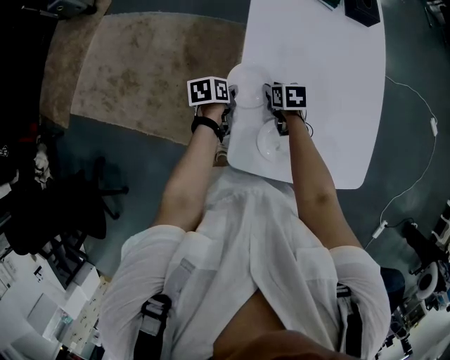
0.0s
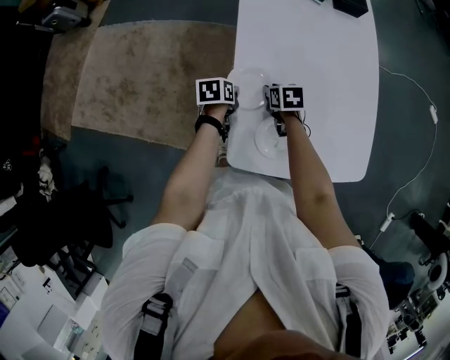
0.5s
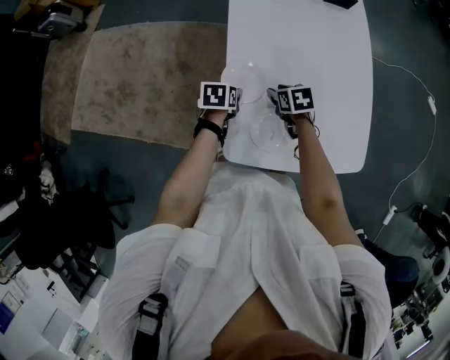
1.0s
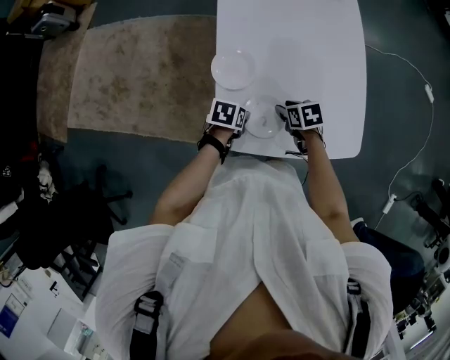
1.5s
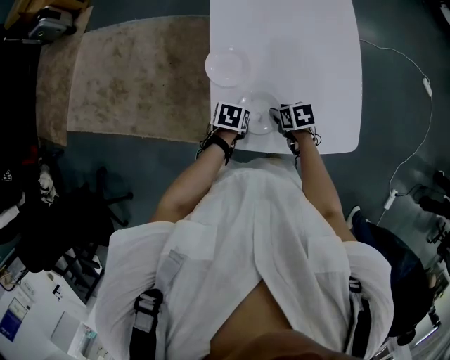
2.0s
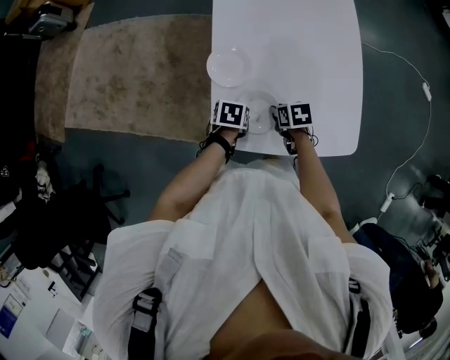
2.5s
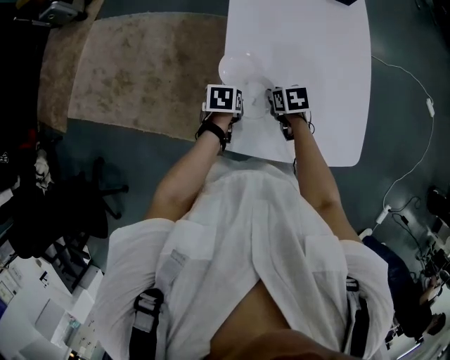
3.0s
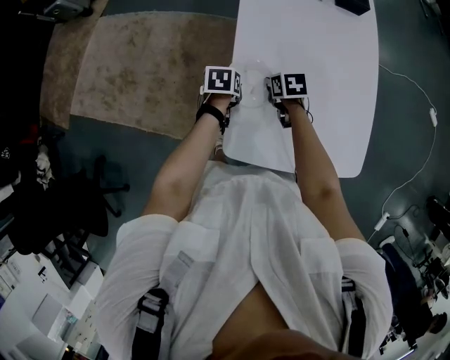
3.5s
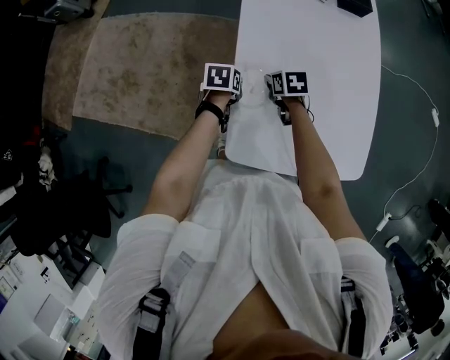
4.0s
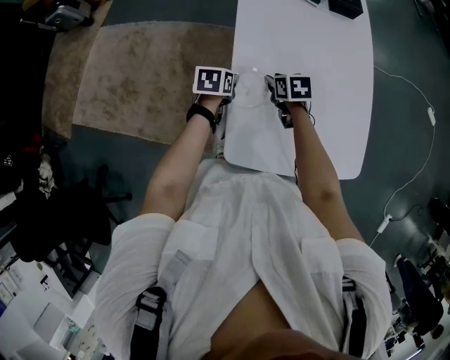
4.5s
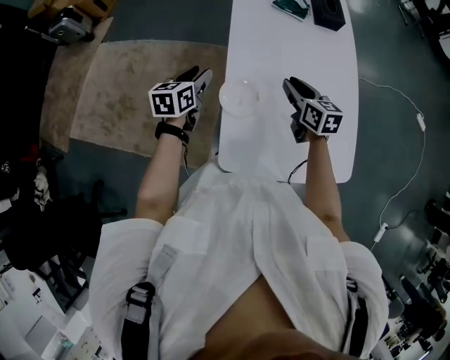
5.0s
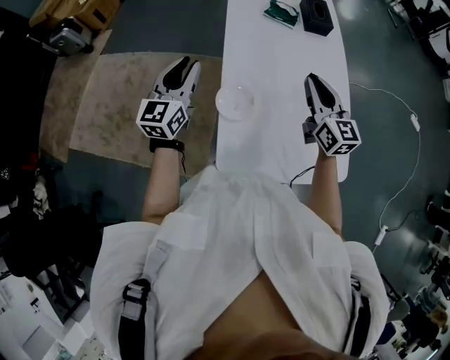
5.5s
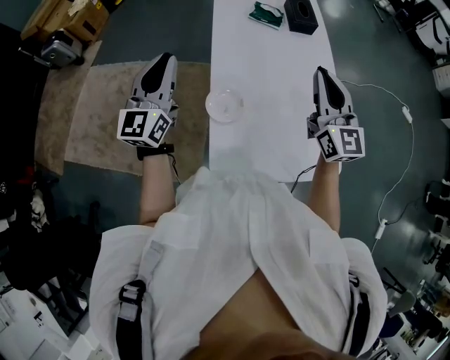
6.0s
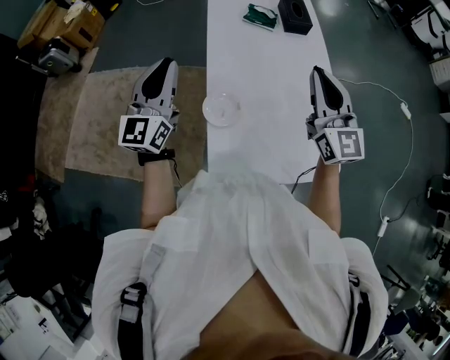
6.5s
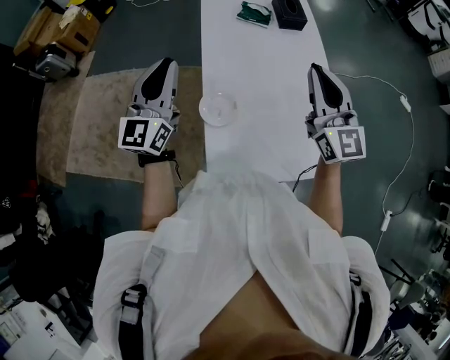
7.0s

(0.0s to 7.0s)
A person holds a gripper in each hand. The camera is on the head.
0.0s - 2.0s: The left gripper ends up some 20 cm from where it was, changes its angle by roughly 30 degrees, and opens, then closes once more. Meanwhile the right gripper shifts by approximately 20 cm.
2.0s - 3.5s: The right gripper ends up some 20 cm from where it was. The left gripper moves about 20 cm.
3.5s - 5.0s: The left gripper travels upward by approximately 15 cm, tips its fingers upward by some 30 degrees, and opens its fingers; the right gripper heads upward and to the right, covering roughly 20 cm, and points its fingers roughly 30 degrees further upward.
5.0s - 7.0s: The two grippers go about 25 cm upward. The left gripper tips its fingers upward by about 40 degrees, and closes up, while the right gripper points its fingers about 30 degrees further upward, and closes.

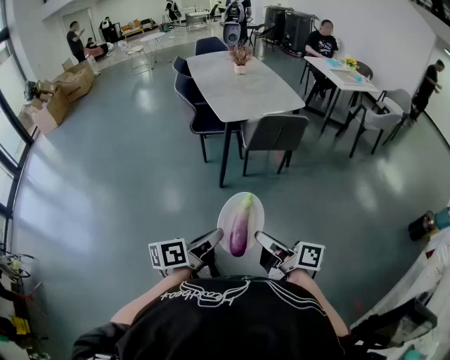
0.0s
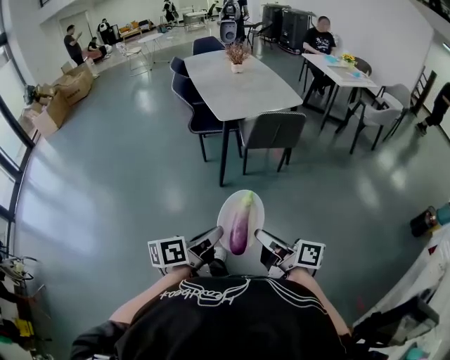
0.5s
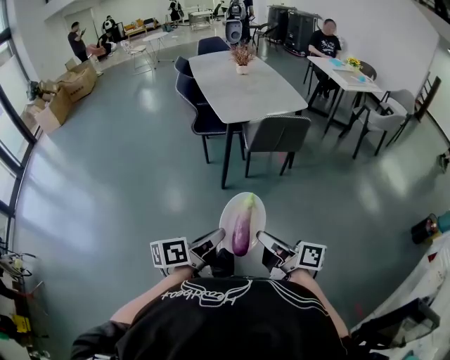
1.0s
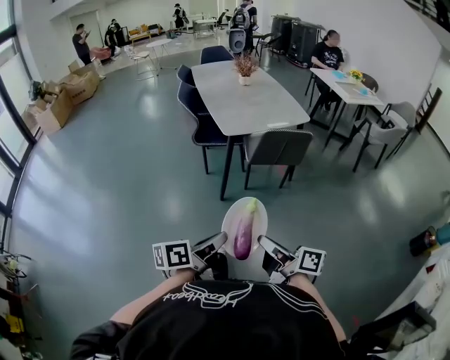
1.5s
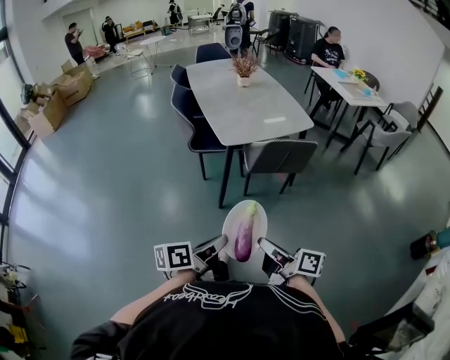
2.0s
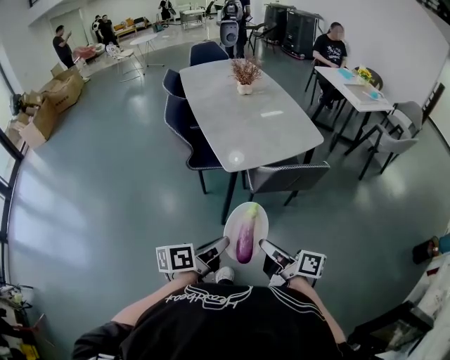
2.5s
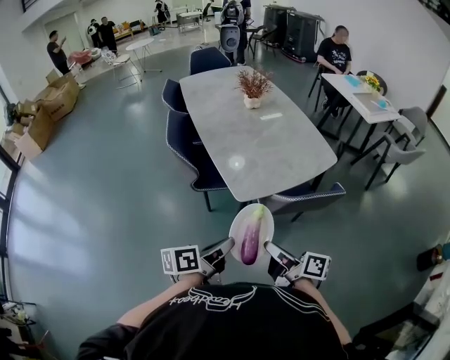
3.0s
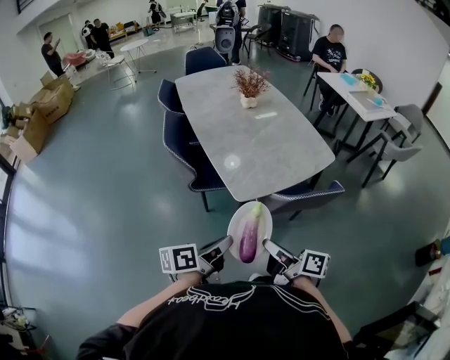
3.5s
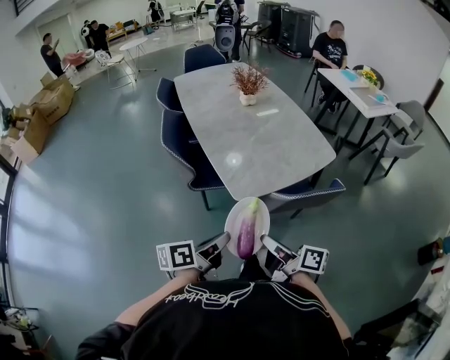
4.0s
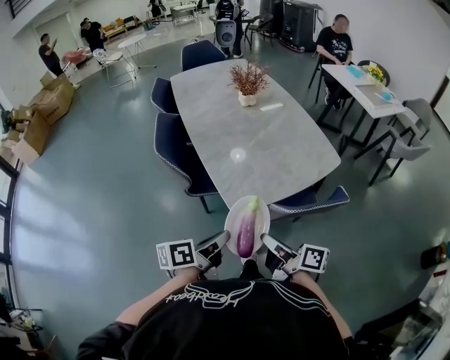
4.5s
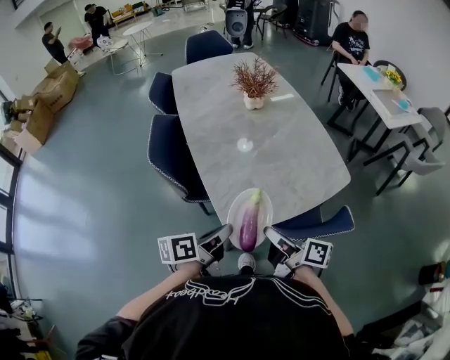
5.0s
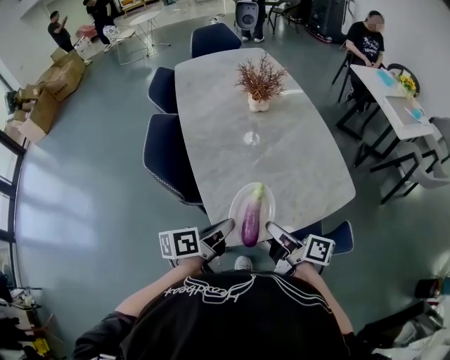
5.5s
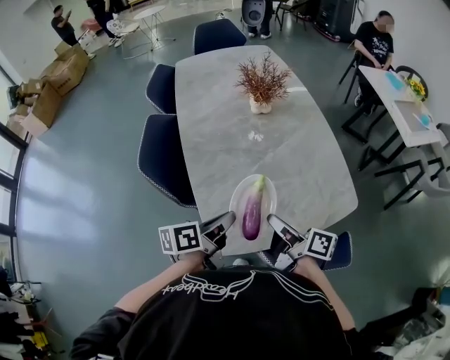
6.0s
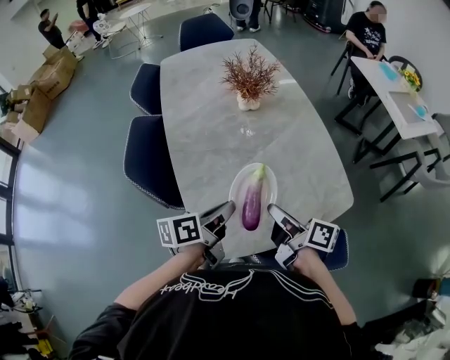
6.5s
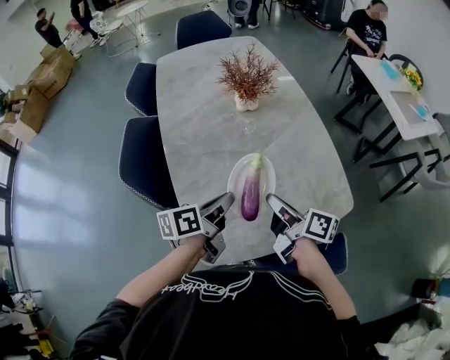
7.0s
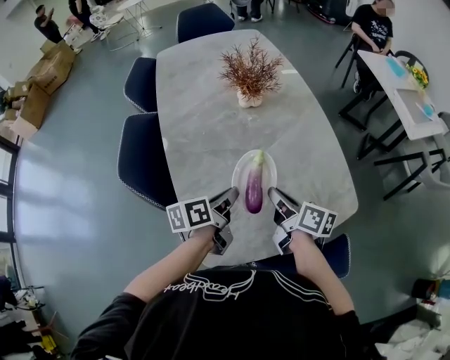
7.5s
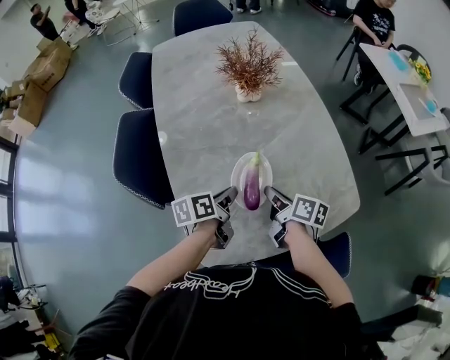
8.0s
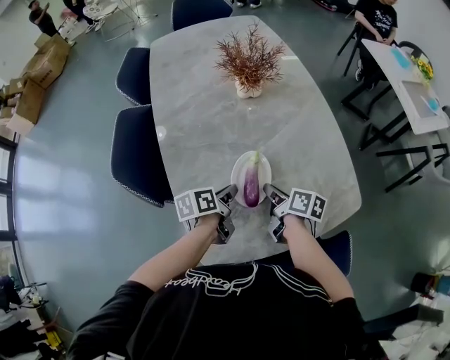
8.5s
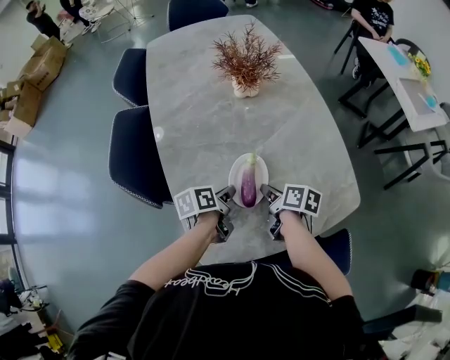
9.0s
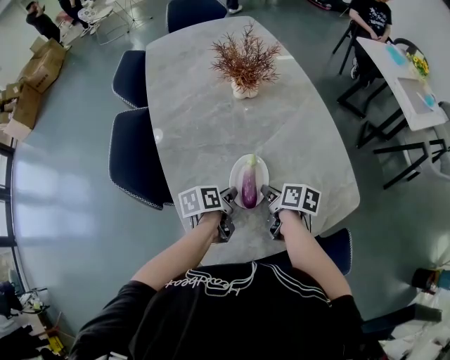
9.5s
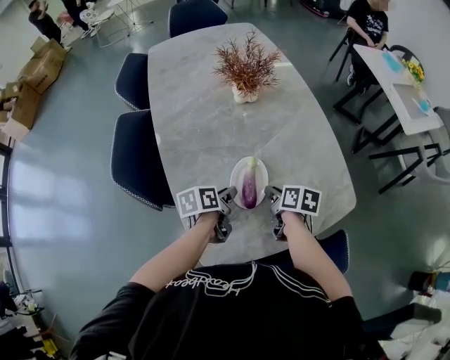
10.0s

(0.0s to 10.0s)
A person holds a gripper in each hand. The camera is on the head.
0.0s - 2.0s: Both grippers travel together forward, about 15 cm.
2.0s - 4.0s: The grippers both shift forward by some 35 cm.
4.0s - 6.0s: Both grippers travel together forward, approximately 35 cm.
6.0s - 8.0s: The grippers both shift forward and downward by about 20 cm. The right gripper swivels approximately 20 degrees.
8.0s - 10.0s: The right gripper changes its angle by roughly 20 degrees.

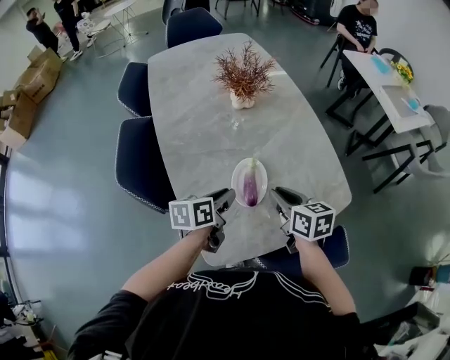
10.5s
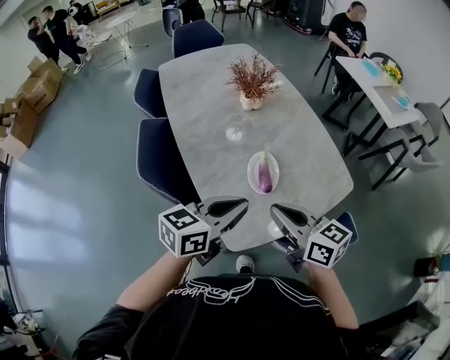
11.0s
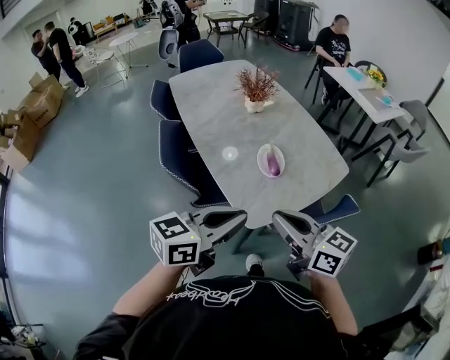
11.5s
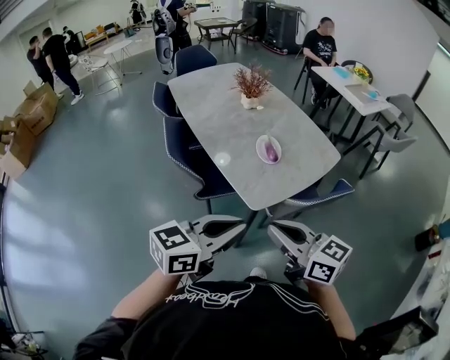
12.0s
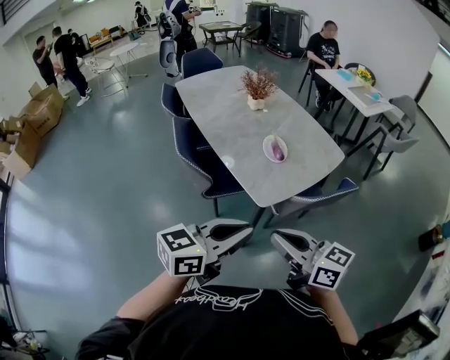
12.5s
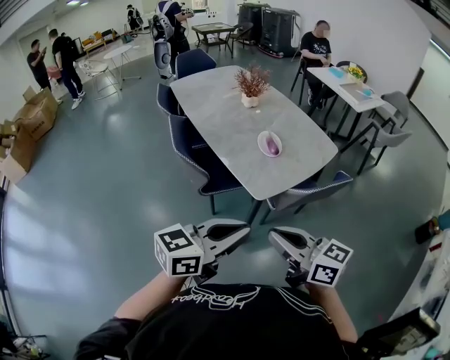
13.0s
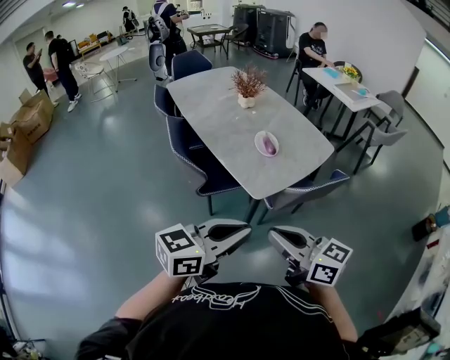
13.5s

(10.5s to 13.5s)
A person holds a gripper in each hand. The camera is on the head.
10.5s - 12.0s: The pair of grippers is taken backward, approximately 40 cm. Both grippers travel together upward, some 20 cm. The left gripper turns by some 50 degrees. The right gripper swivels some 30 degrees.
12.0s - 13.5s: Both grippers travel together backward, some 10 cm.

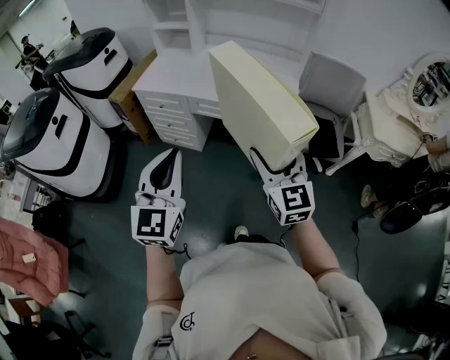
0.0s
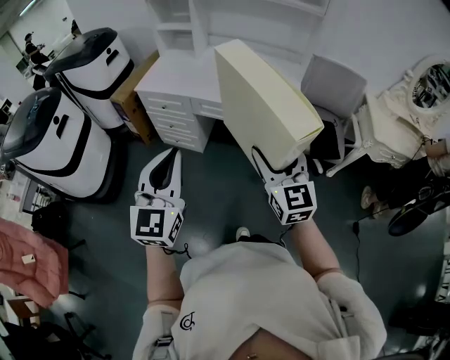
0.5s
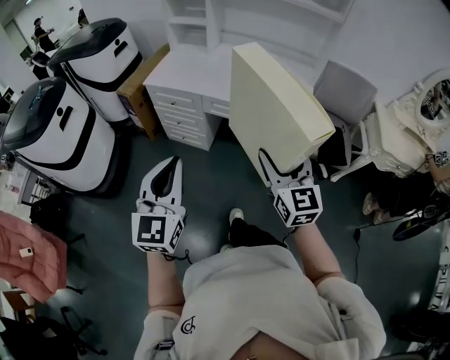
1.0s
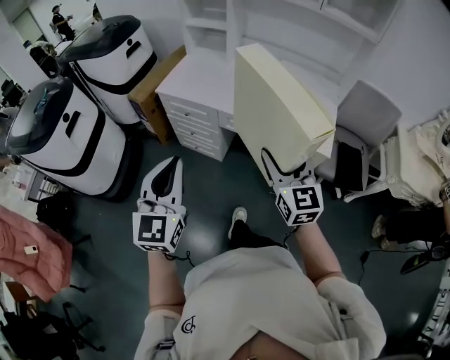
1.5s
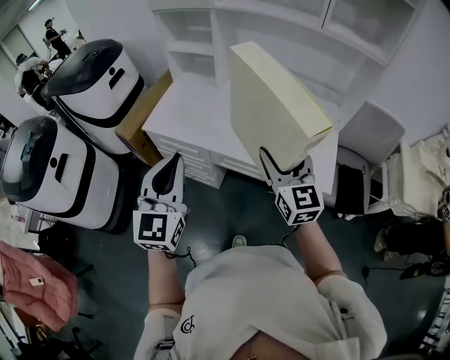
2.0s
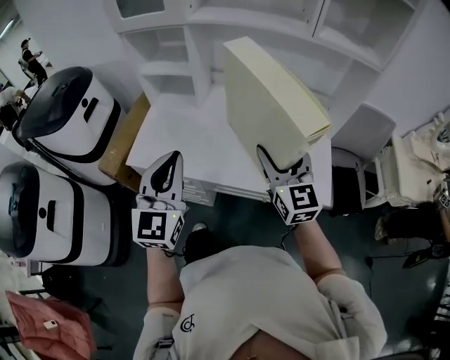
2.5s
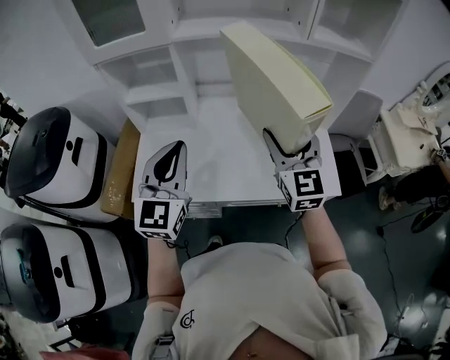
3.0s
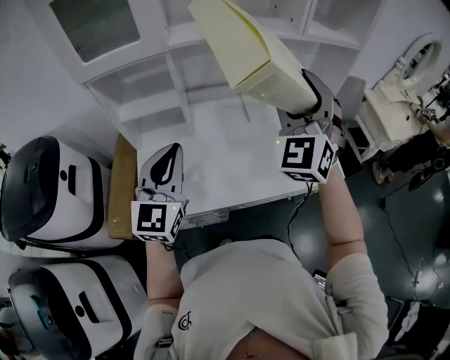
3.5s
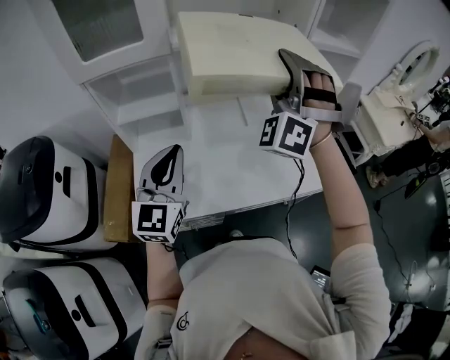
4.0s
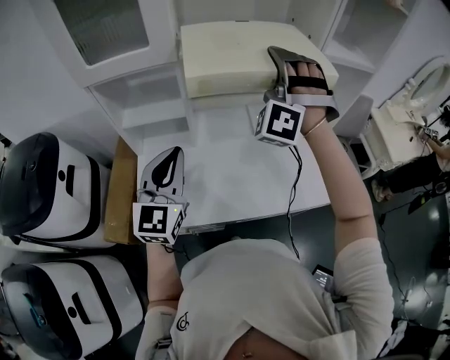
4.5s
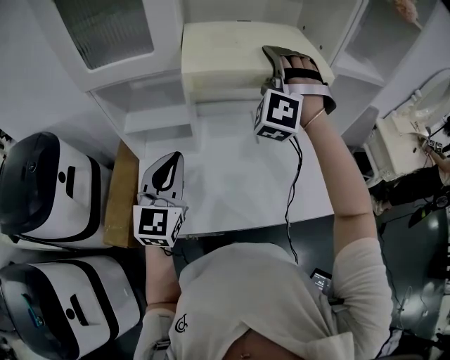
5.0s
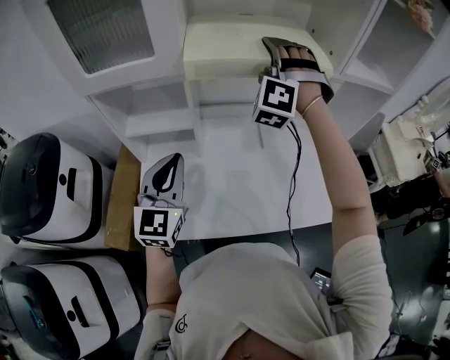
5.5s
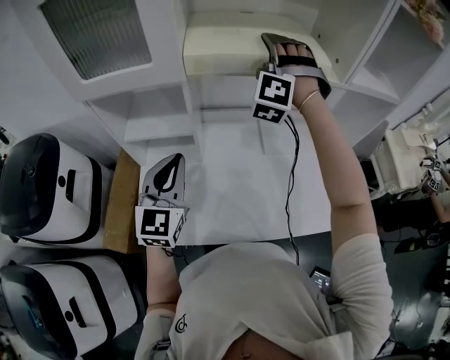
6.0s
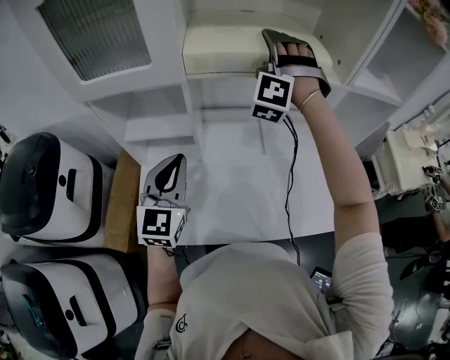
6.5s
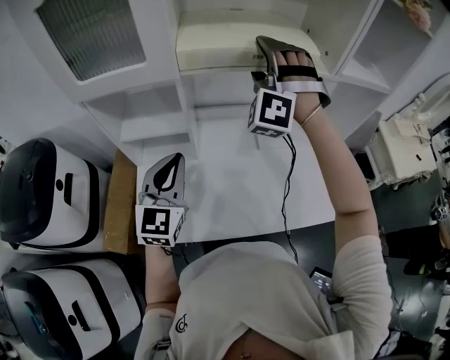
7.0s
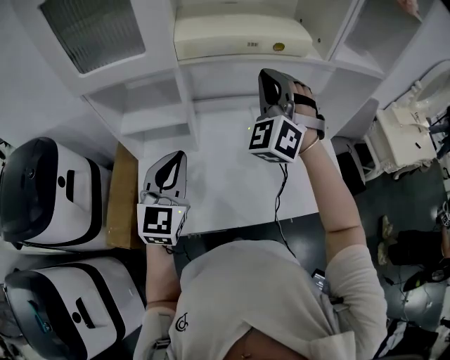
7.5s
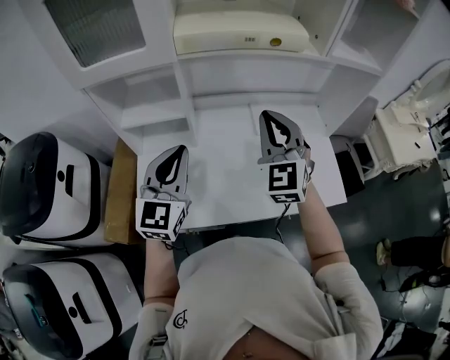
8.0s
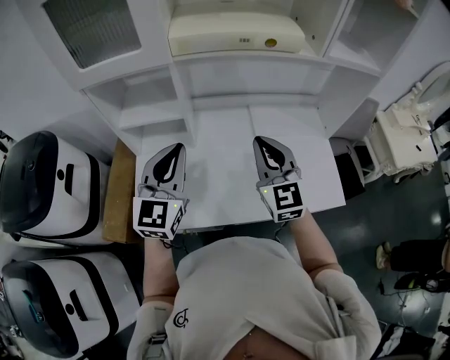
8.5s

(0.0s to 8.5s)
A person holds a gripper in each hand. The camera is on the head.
0.0s - 2.0s: The grippers both shift forward by roughly 35 cm.
2.0s - 4.0s: The right gripper changes place by approximately 35 cm, and rolls counterclockwise, seen from behind, by roughly 80 degrees. Meanwhile the left gripper ends up roughly 35 cm from where it was, and rotates about 30 degrees.
4.0s - 6.5s: The left gripper travels forward by roughly 10 cm. The right gripper shifts about 25 cm forward and to the left, and opens up.
6.5s - 8.5s: The left gripper moves backward, approximately 5 cm. The right gripper moves backward and downward, roughly 30 cm, twists roughly 80 degrees clockwise, seen from behind, and closes.
